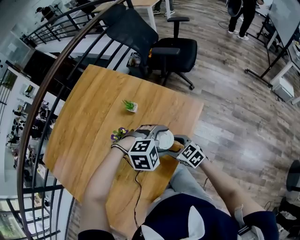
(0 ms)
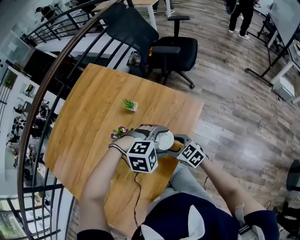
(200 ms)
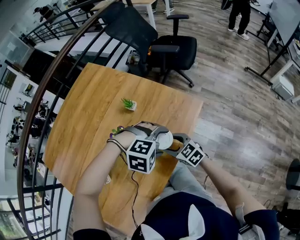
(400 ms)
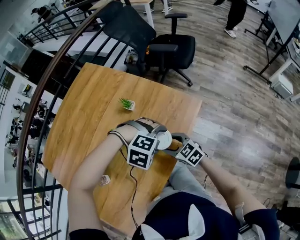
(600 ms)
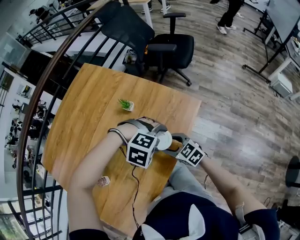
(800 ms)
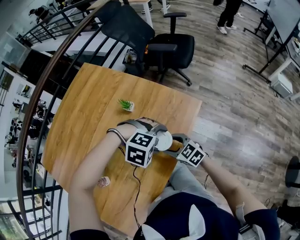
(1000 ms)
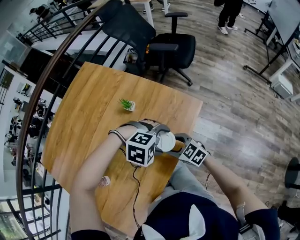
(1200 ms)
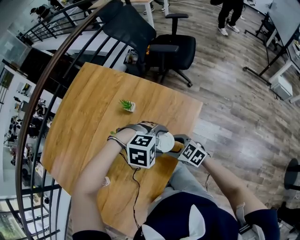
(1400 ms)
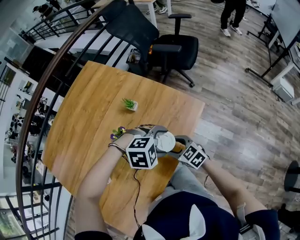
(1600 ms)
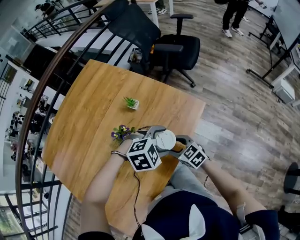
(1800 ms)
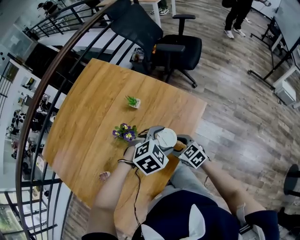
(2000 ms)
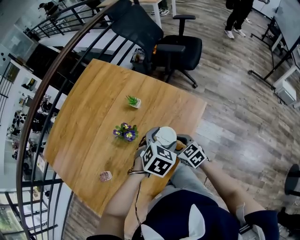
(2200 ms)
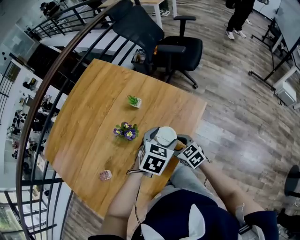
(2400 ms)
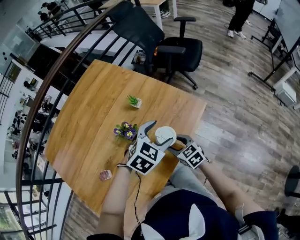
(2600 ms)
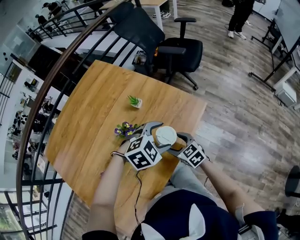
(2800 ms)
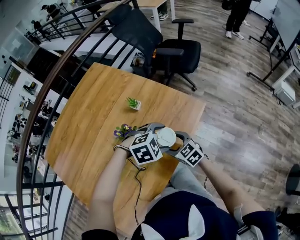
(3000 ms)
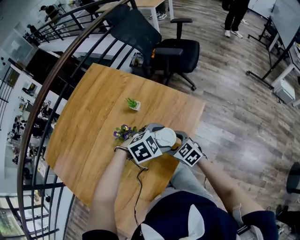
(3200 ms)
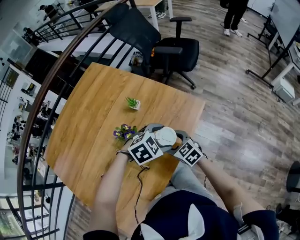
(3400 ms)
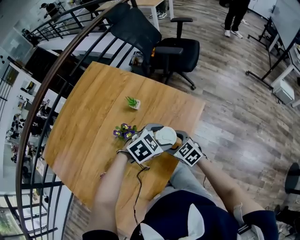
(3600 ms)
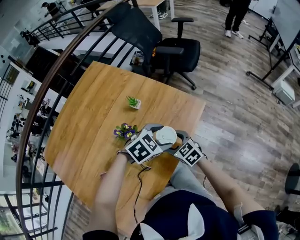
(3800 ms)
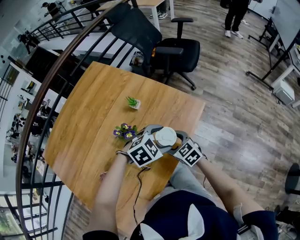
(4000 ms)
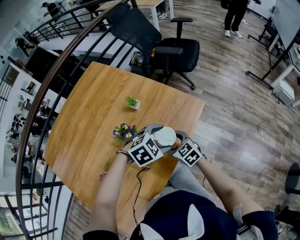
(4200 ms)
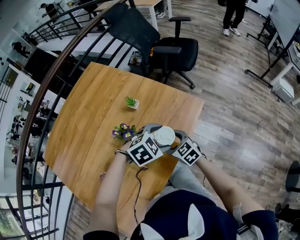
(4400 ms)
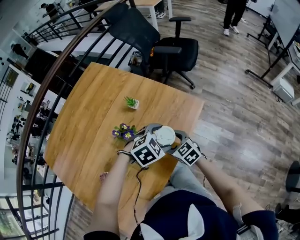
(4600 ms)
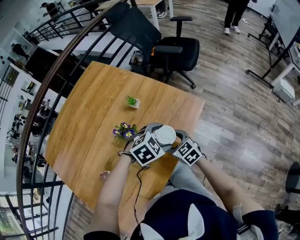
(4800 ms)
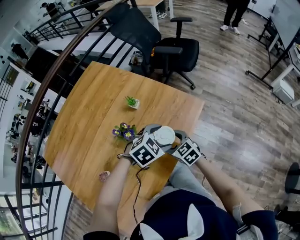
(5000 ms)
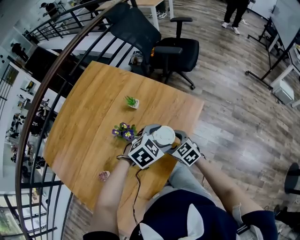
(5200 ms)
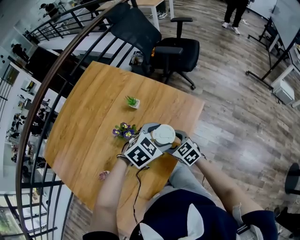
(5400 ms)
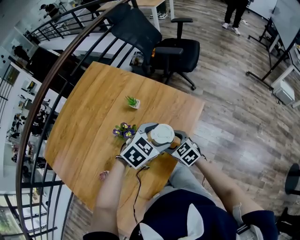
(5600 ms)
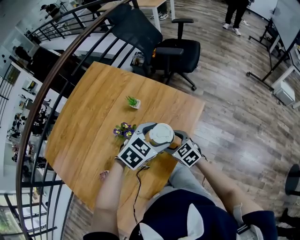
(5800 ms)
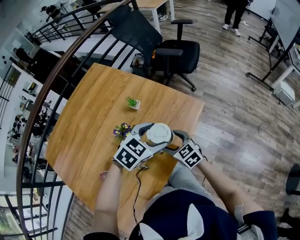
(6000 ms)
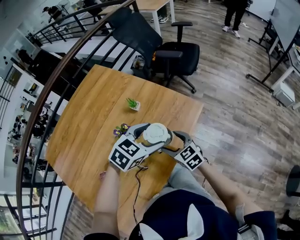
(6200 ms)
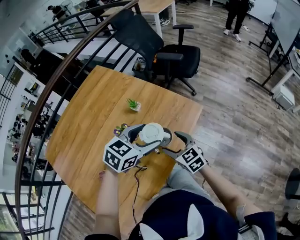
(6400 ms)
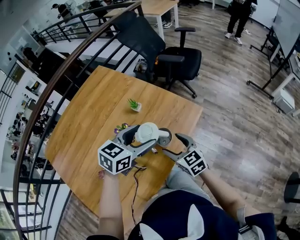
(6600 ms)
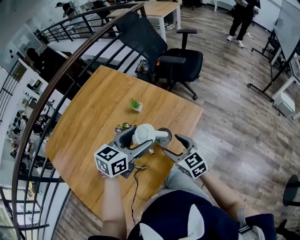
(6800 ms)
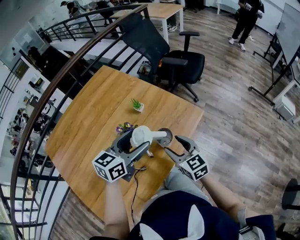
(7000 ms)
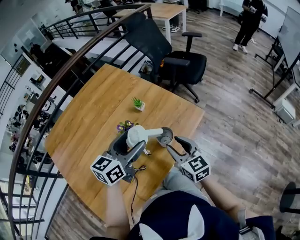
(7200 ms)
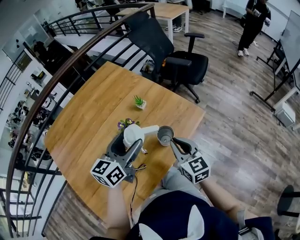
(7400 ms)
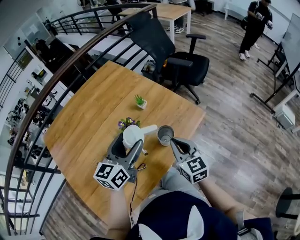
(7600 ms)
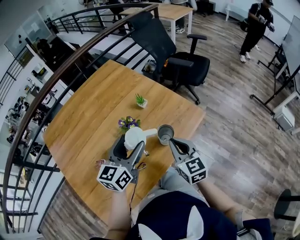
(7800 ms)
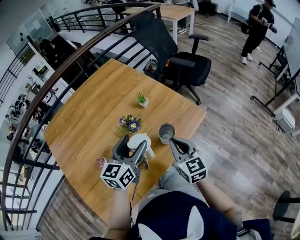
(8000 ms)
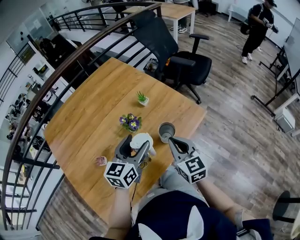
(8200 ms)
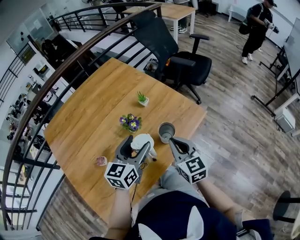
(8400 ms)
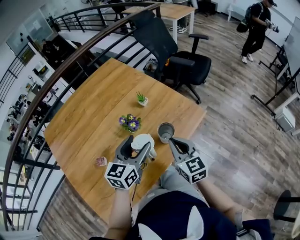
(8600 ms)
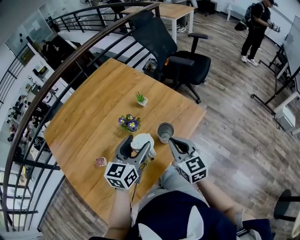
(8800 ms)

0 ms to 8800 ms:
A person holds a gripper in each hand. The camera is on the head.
1400 ms to 3000 ms: The left gripper turns by roughly 30 degrees.
3000 ms to 4400 ms: The grippers make only small movements.
4400 ms to 5800 ms: The grippers stay close to where they were, moving slightly.
5800 ms to 7400 ms: The right gripper travels upward by roughly 15 cm, turns by about 20 degrees, and closes up. Meanwhile the left gripper travels to the left and upward by approximately 15 cm, and angles its fingers upward, by roughly 40 degrees.
7400 ms to 8800 ms: The left gripper moves some 5 cm.

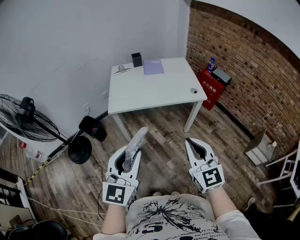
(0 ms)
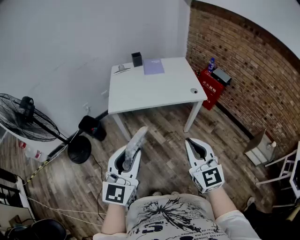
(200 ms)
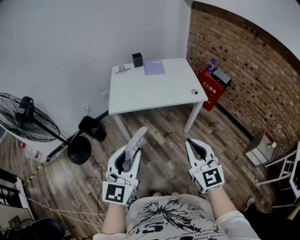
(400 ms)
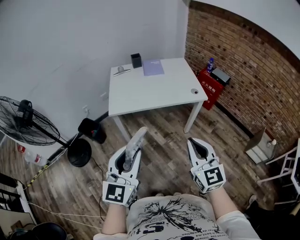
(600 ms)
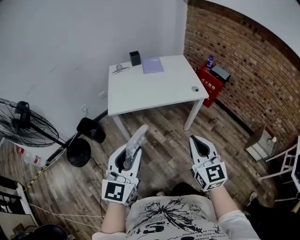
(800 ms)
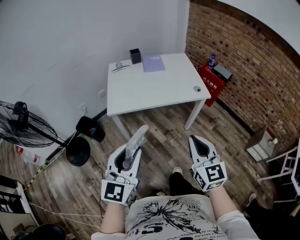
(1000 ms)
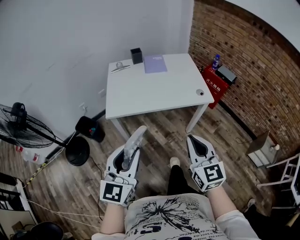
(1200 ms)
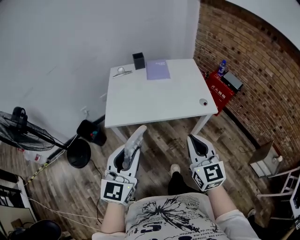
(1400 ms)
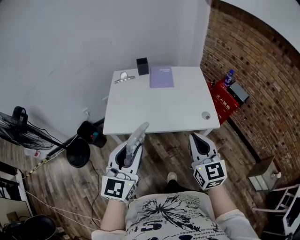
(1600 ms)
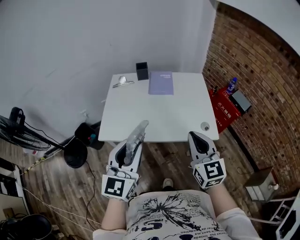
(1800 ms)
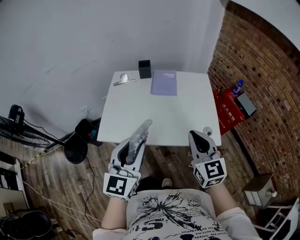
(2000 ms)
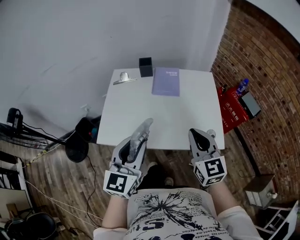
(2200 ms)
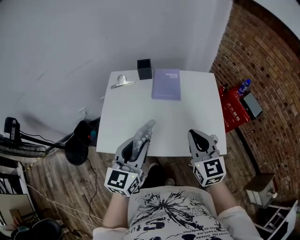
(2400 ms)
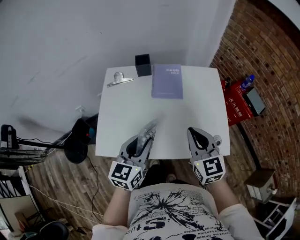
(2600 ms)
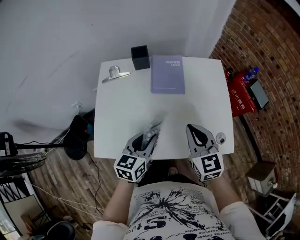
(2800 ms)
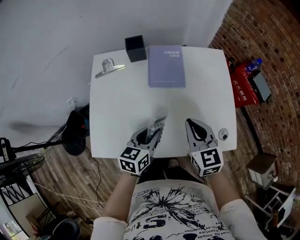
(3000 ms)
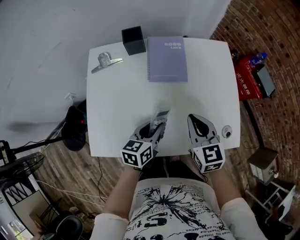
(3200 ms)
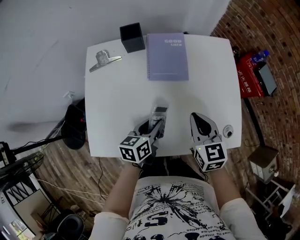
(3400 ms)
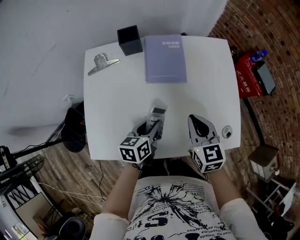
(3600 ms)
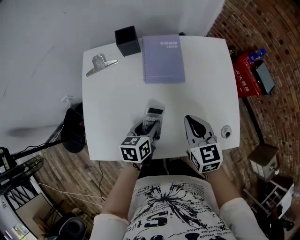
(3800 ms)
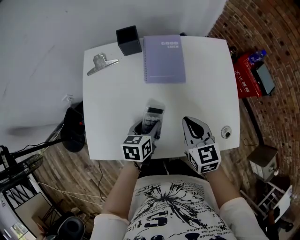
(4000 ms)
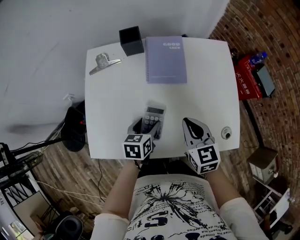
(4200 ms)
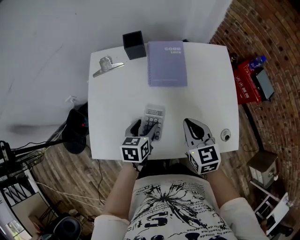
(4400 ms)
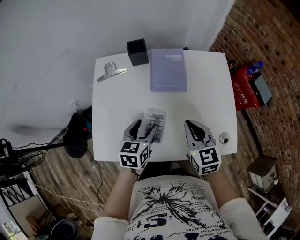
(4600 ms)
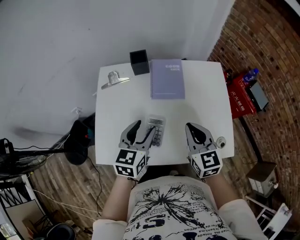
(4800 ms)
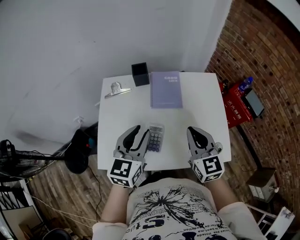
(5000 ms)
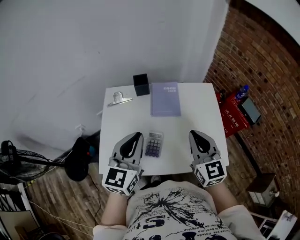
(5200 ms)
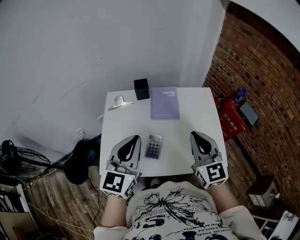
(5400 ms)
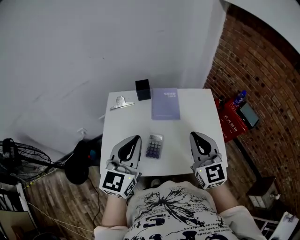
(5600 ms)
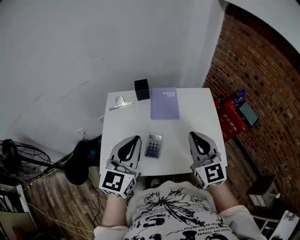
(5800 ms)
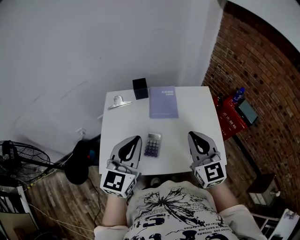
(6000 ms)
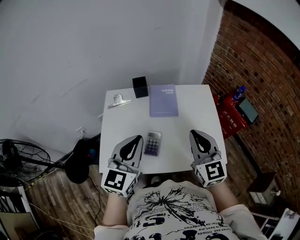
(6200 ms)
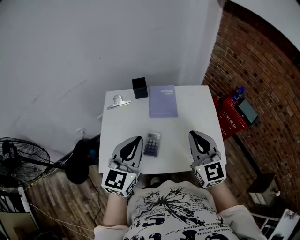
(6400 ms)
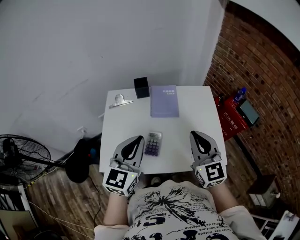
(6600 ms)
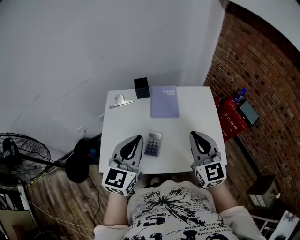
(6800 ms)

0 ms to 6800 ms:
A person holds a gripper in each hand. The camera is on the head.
0 ms to 1400 ms: Both grippers travel together forward, about 20 cm.
1400 ms to 2800 ms: The pair of grippers is taken forward, about 50 cm. The left gripper changes its angle by about 30 degrees.
2800 ms to 4000 ms: The grippers both shift downward and forward by some 15 cm. The left gripper rotates about 20 degrees.
4000 ms to 5400 ms: The right gripper goes some 25 cm upward, and turns by approximately 30 degrees. Meanwhile the left gripper heads upward, covering some 35 cm, angles its fingers upward, by some 40 degrees, and closes its fingers.
5400 ms to 6800 ms: The grippers stay close to where they were, moving slightly.

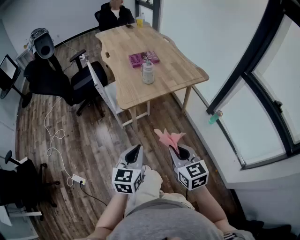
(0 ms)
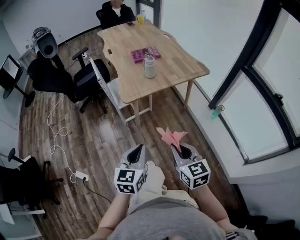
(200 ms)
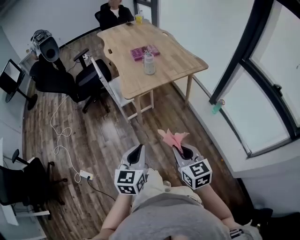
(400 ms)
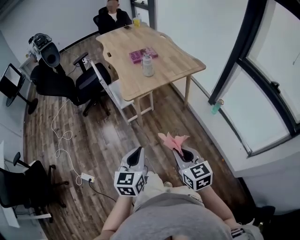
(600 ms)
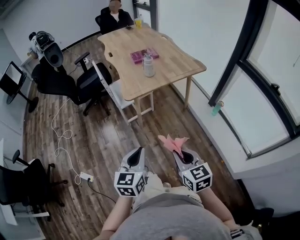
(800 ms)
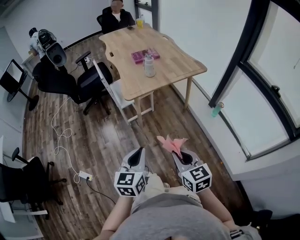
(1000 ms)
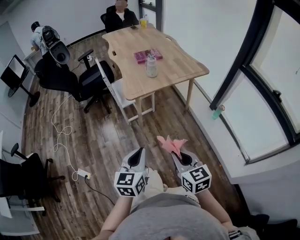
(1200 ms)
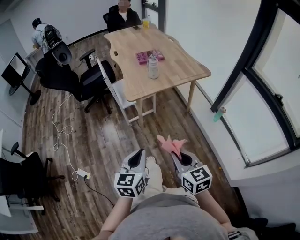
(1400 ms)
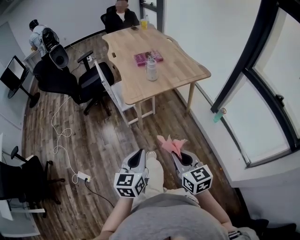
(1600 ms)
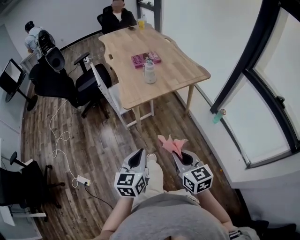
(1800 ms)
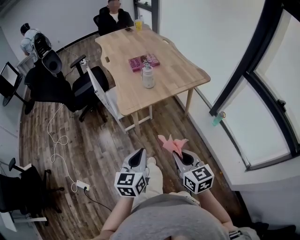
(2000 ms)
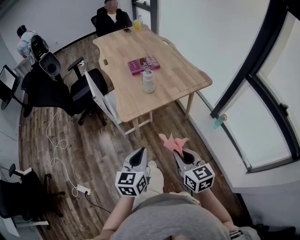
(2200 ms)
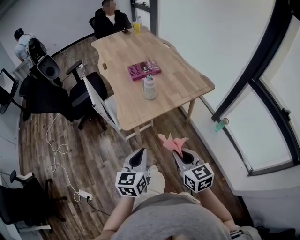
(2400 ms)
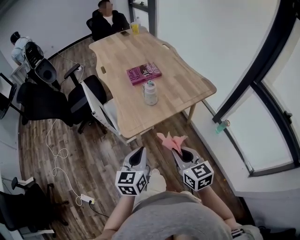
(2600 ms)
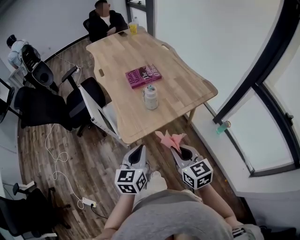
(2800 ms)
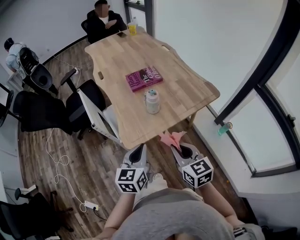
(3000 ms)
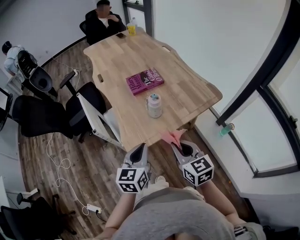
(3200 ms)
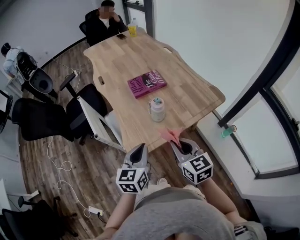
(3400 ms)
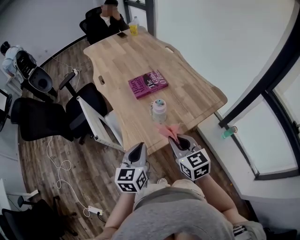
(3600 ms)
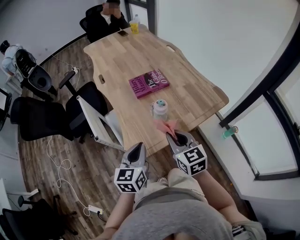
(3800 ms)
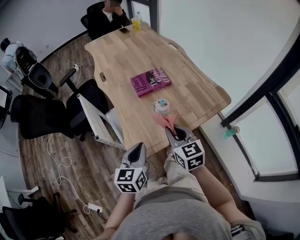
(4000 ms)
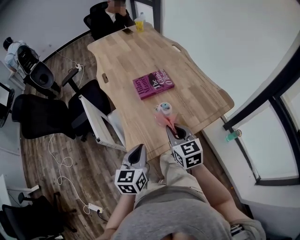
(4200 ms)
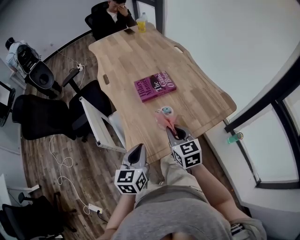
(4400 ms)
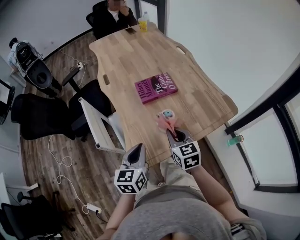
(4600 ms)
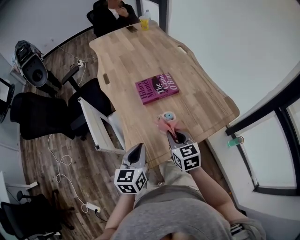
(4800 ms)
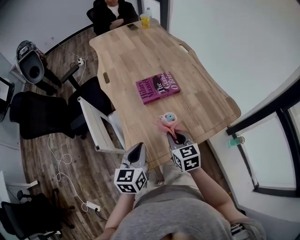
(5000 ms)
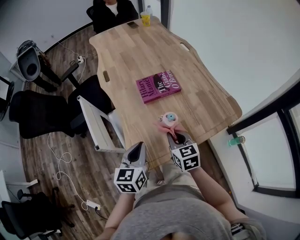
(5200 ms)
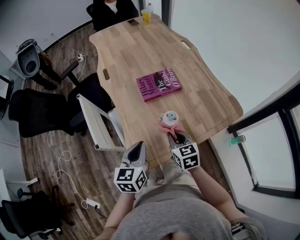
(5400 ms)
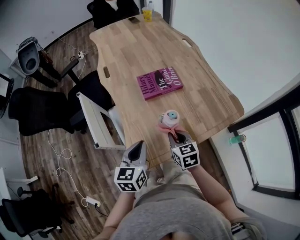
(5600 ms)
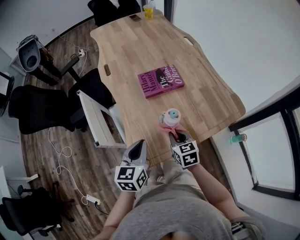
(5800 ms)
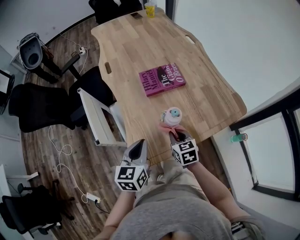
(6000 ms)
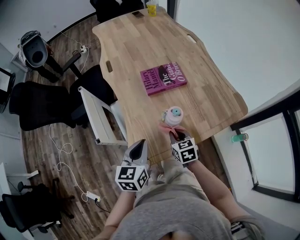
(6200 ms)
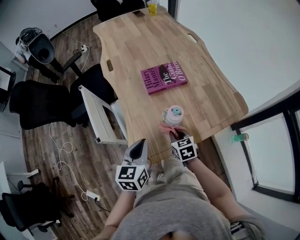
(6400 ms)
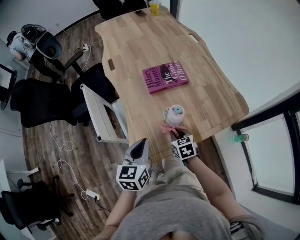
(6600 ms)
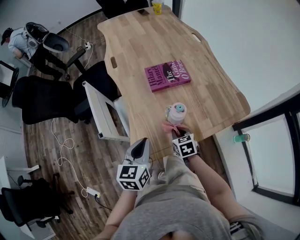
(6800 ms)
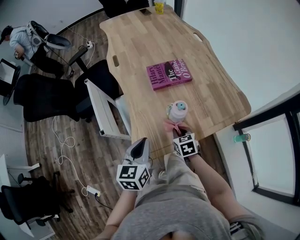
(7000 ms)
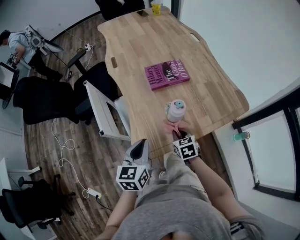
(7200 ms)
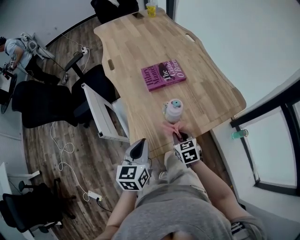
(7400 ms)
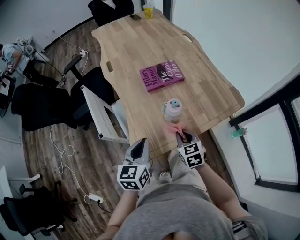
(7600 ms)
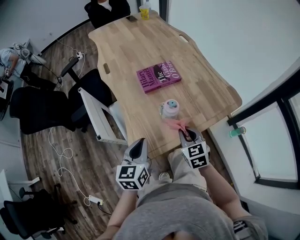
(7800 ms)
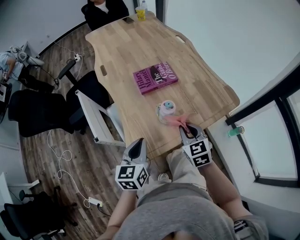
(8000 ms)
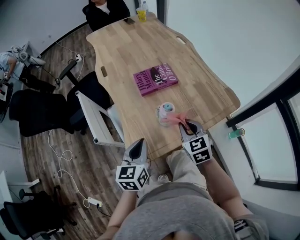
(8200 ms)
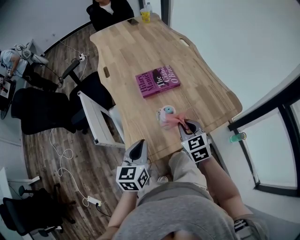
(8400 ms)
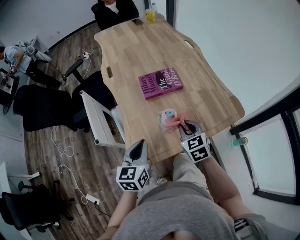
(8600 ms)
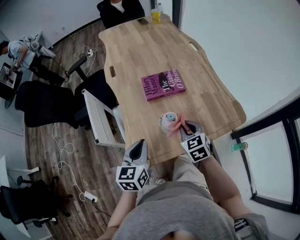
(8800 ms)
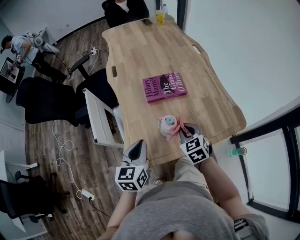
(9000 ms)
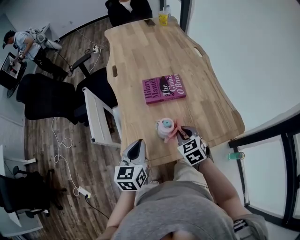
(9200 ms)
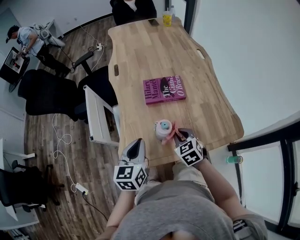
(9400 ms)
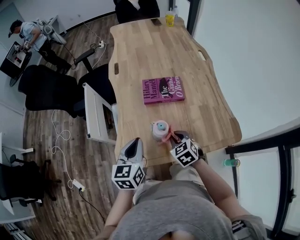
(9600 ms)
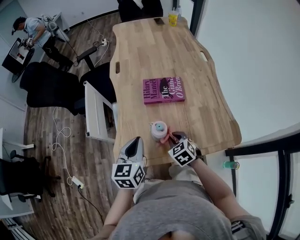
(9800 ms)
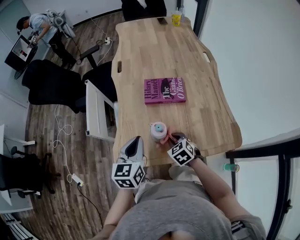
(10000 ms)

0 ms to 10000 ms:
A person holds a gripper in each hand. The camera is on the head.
0 ms to 1400 ms: Both grippers move backward, about 10 cm.
1400 ms to 2800 ms: The two grippers go approximately 30 cm forward.
2800 ms to 4200 ms: The left gripper travels forward by roughly 15 cm. Meanwhile the right gripper shifts about 25 cm forward.
4200 ms to 5800 ms: The left gripper moves forward, about 5 cm. The right gripper is displaced downward by approximately 15 cm.
5800 ms to 7200 ms: The right gripper heads downward, covering some 5 cm.
7200 ms to 8600 ms: The right gripper is displaced upward and to the right by approximately 15 cm.
8600 ms to 10000 ms: The left gripper shifts some 5 cm to the right; the right gripper heads downward, covering approximately 10 cm, and turns by about 30 degrees.
